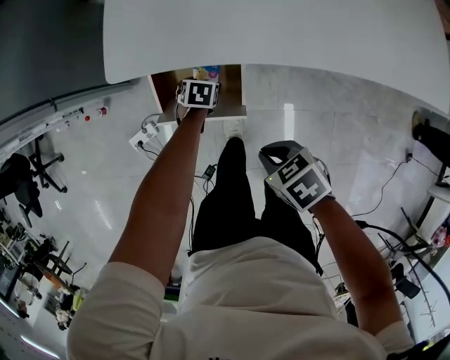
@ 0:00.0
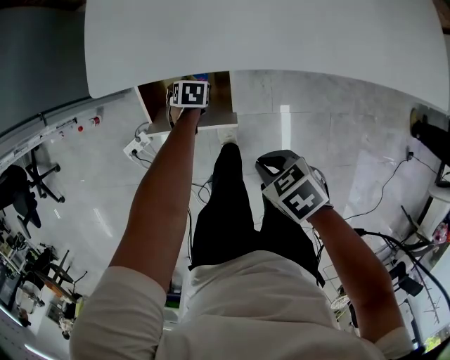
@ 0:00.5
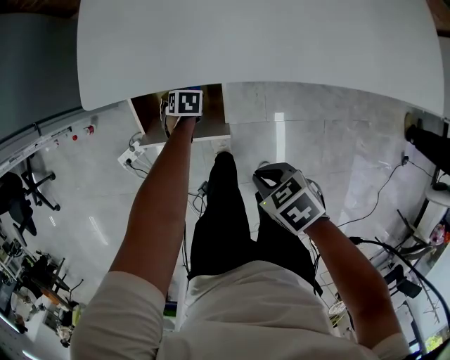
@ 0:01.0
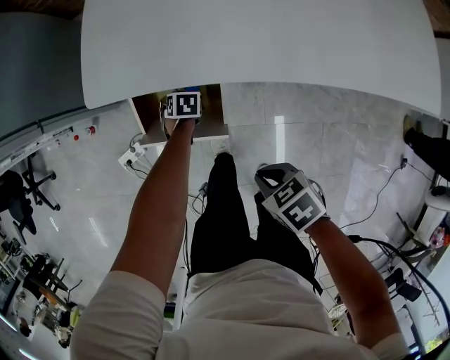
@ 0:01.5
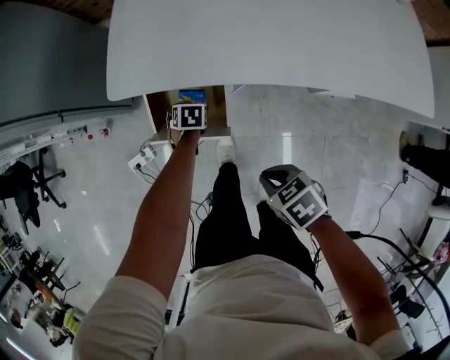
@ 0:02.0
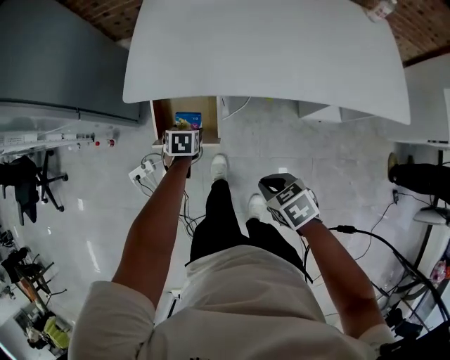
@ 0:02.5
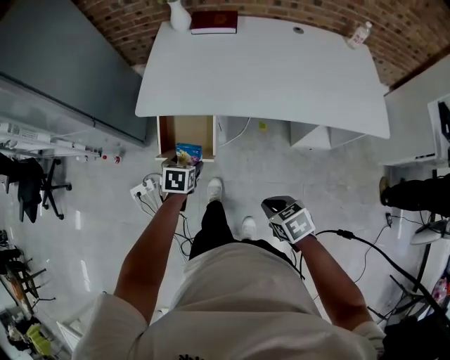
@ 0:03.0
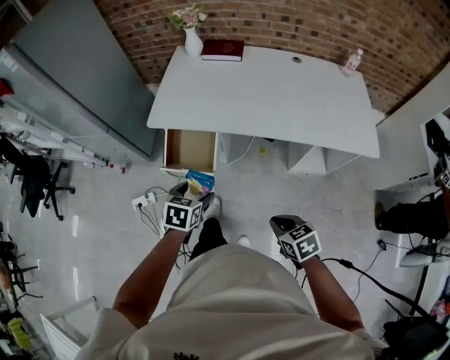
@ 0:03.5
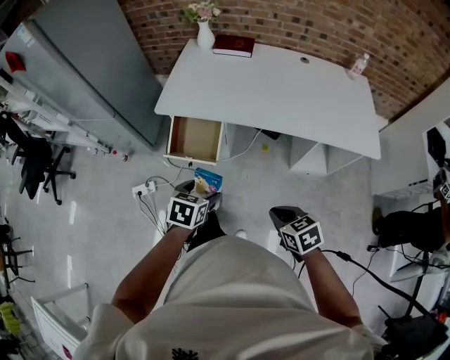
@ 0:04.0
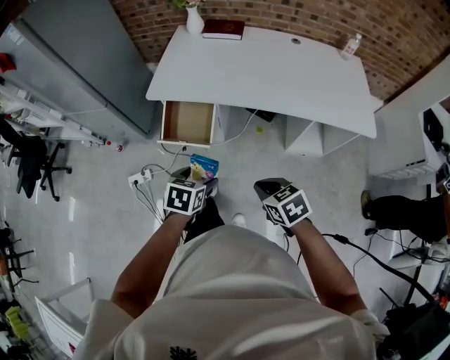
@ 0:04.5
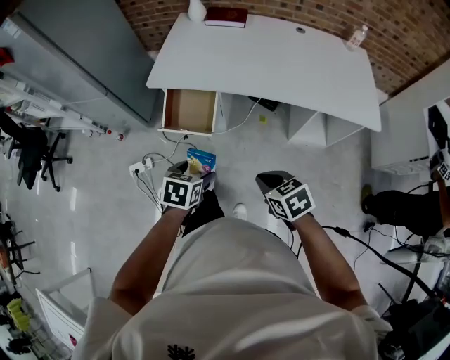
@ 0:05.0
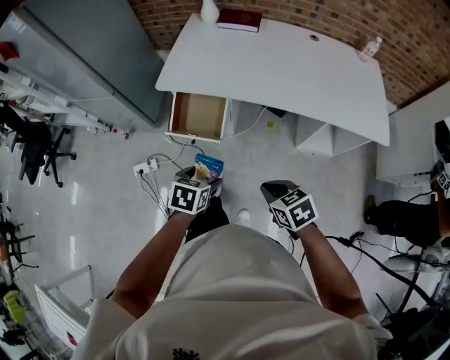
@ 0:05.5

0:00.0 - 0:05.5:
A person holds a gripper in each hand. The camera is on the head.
0:00.0 - 0:02.0: The left gripper goes roughly 5 cm upward, while the right gripper shifts by some 10 cm.
0:02.0 - 0:03.5: The left gripper goes approximately 50 cm upward and backward, and changes its angle by roughly 20 degrees. Meanwhile the right gripper travels backward and upward by about 30 cm, and swivels about 20 degrees.
0:03.5 - 0:05.5: The right gripper travels to the left by about 5 cm. Meanwhile the left gripper shifts about 5 cm backward.

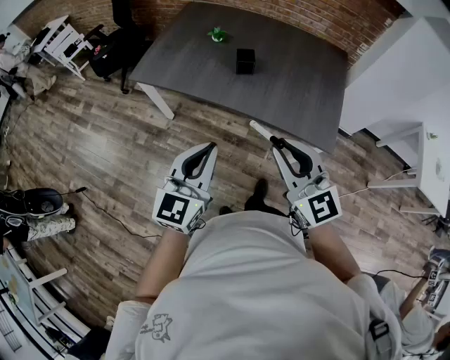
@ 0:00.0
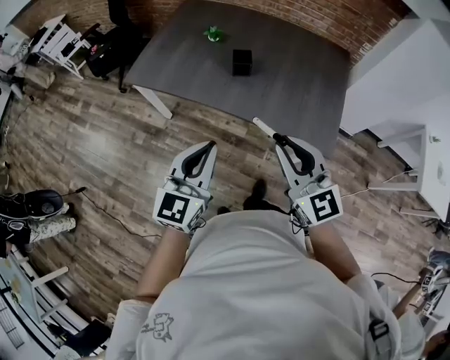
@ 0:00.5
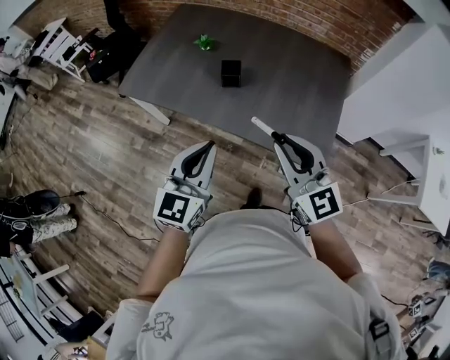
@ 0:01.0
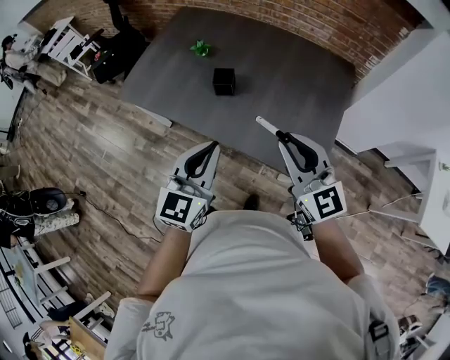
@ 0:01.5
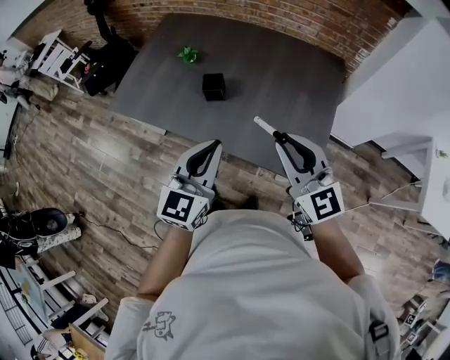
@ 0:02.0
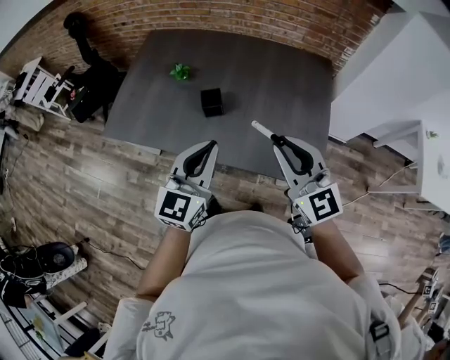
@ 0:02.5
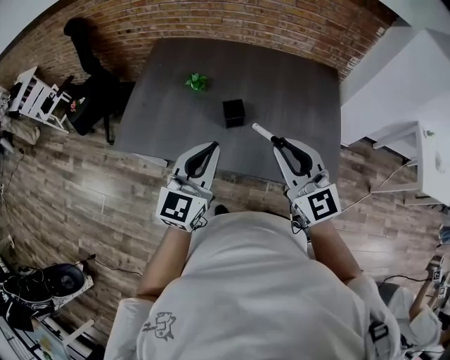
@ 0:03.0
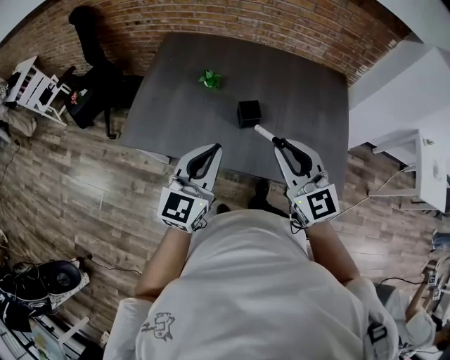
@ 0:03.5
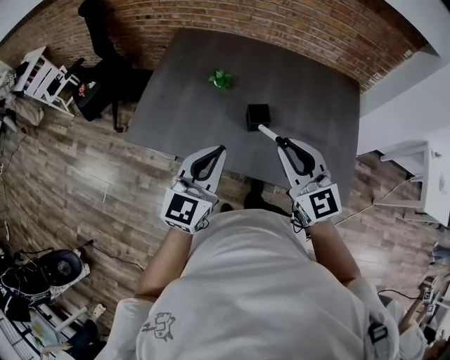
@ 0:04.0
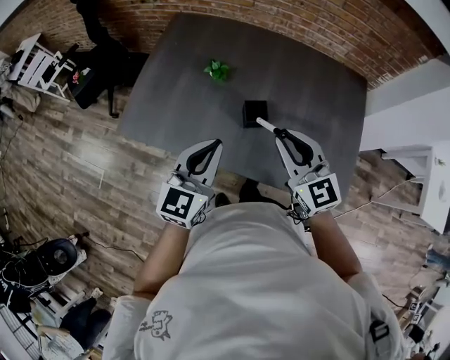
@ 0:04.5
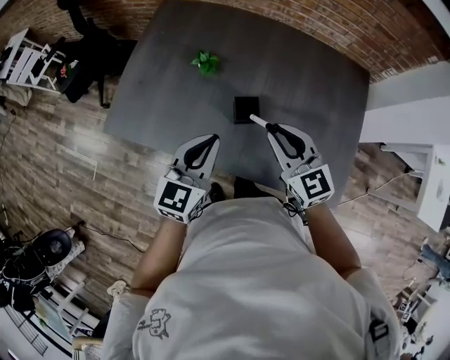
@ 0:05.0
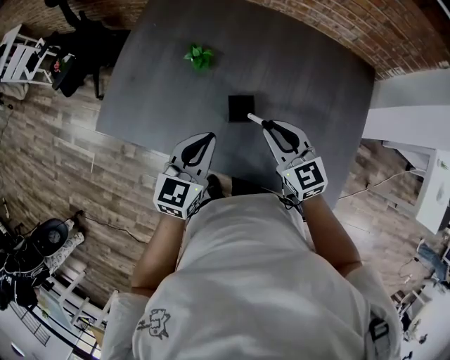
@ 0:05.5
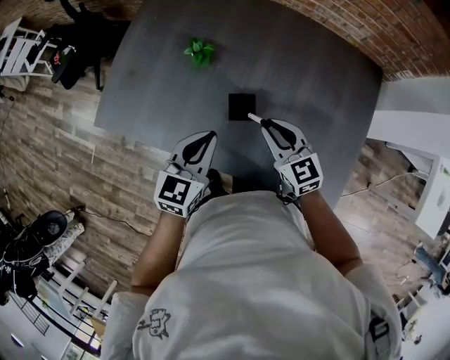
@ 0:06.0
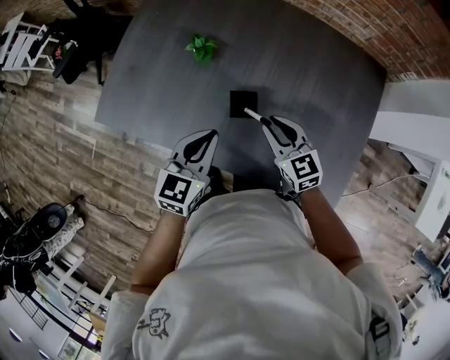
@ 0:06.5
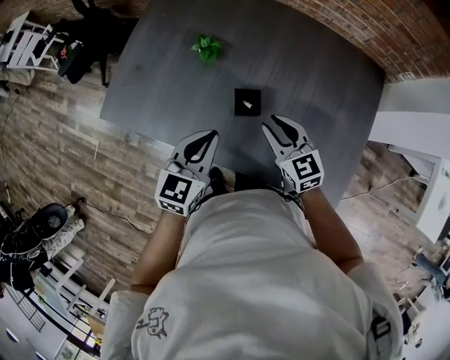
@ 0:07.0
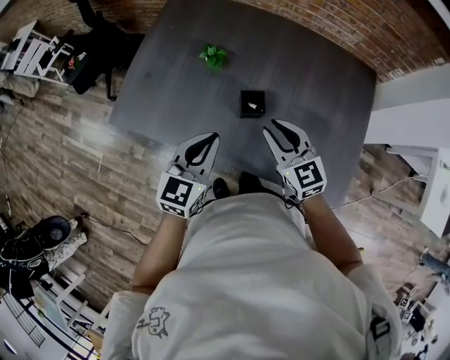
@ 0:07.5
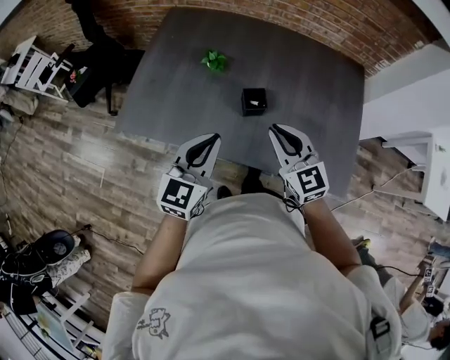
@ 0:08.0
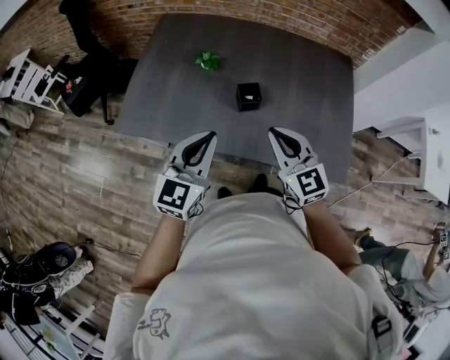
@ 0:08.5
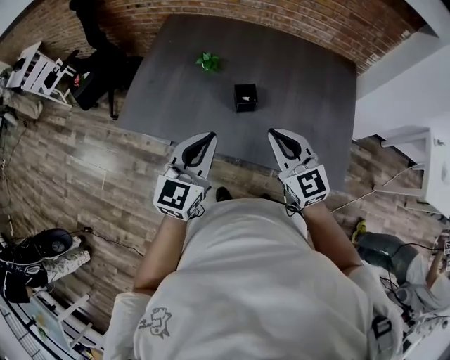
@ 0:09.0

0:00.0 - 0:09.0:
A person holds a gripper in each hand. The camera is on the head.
0:00.0 - 0:02.0: The two grippers go about 25 cm to the right and forward.
0:02.0 - 0:04.5: The grippers both shift to the left and forward by approximately 25 cm.
0:04.5 - 0:07.0: The right gripper moves downward and forward, approximately 20 cm. The left gripper travels downward and forward by roughly 10 cm.
0:07.0 - 0:09.0: Both grippers travel together backward and upward, roughly 20 cm. The right gripper closes its fingers.

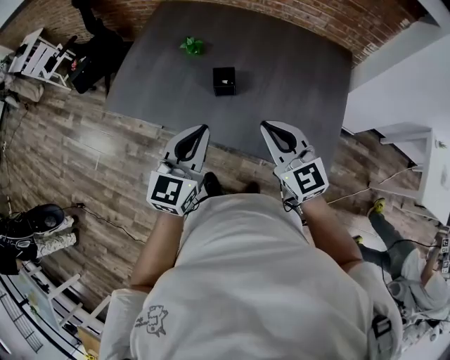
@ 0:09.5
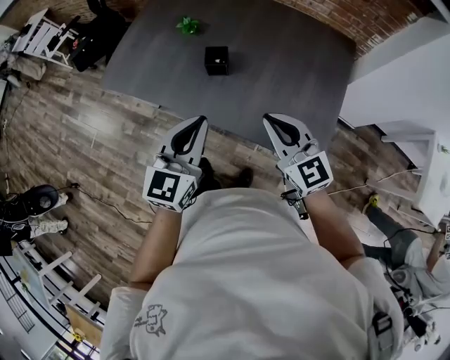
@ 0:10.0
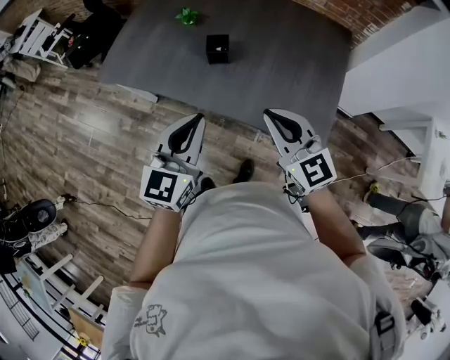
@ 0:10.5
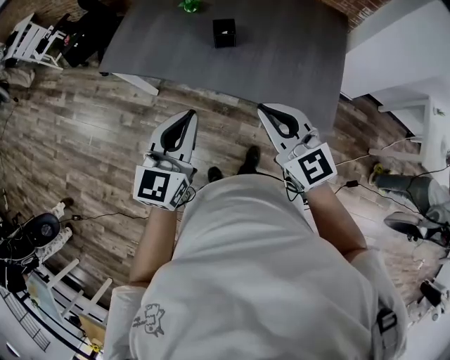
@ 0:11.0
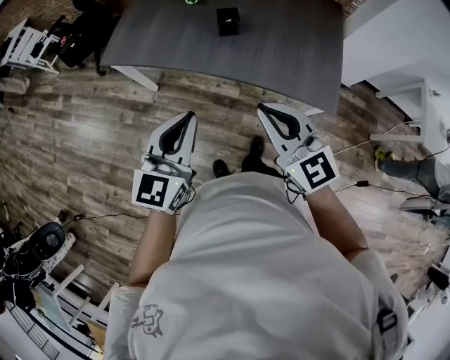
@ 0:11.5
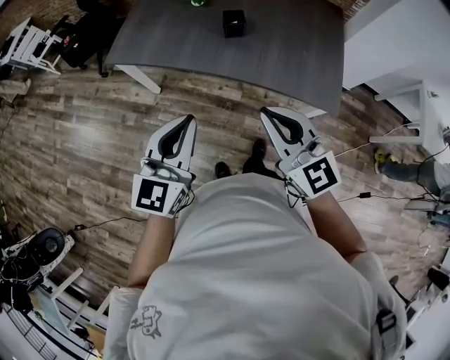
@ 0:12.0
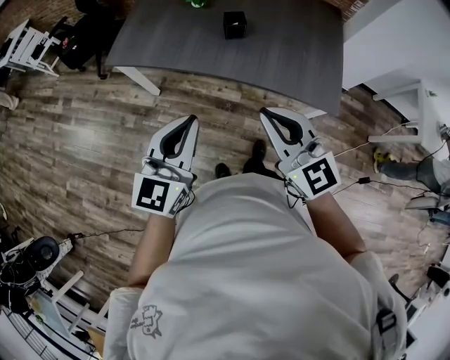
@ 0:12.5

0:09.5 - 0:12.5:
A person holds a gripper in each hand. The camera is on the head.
0:09.5 - 0:11.0: Both grippers move backward and to the left, some 15 cm.
0:11.0 - 0:12.5: The two grippers go about 10 cm to the left and backward.

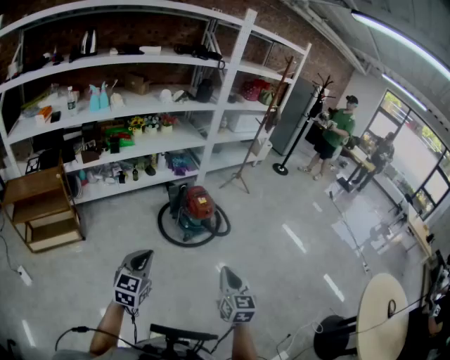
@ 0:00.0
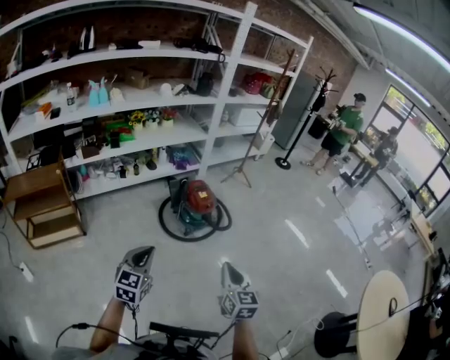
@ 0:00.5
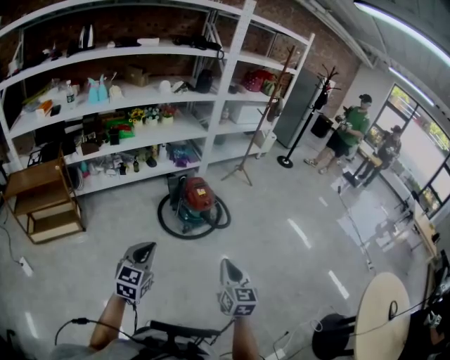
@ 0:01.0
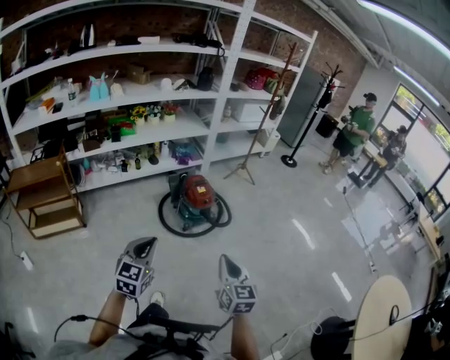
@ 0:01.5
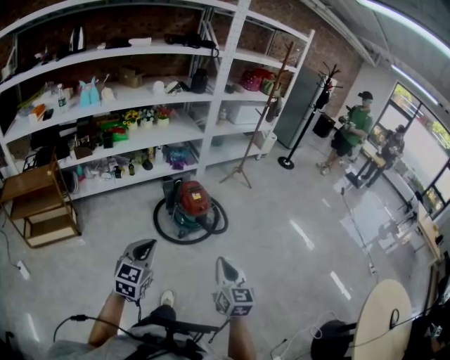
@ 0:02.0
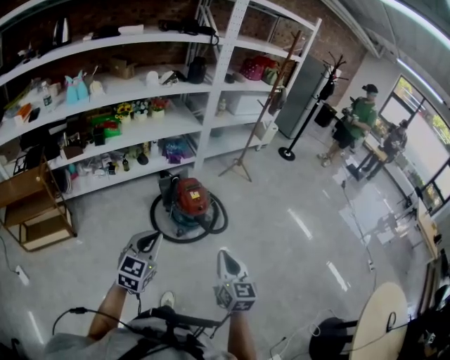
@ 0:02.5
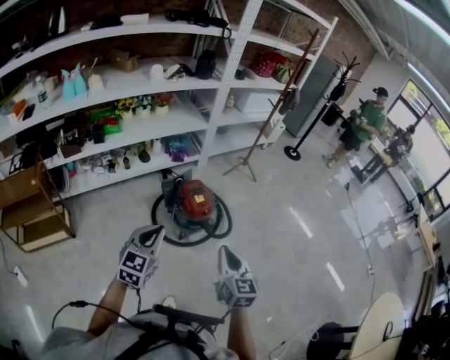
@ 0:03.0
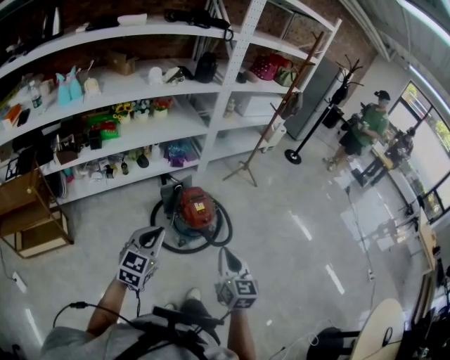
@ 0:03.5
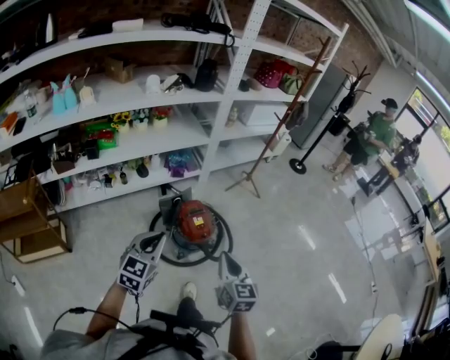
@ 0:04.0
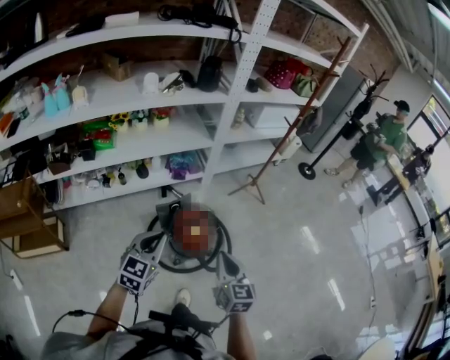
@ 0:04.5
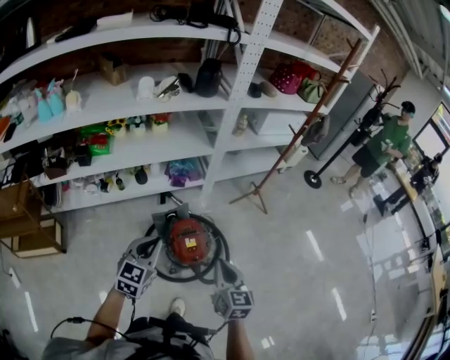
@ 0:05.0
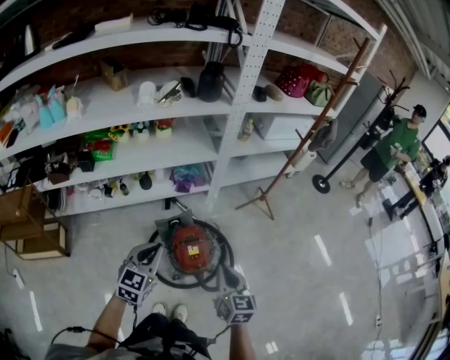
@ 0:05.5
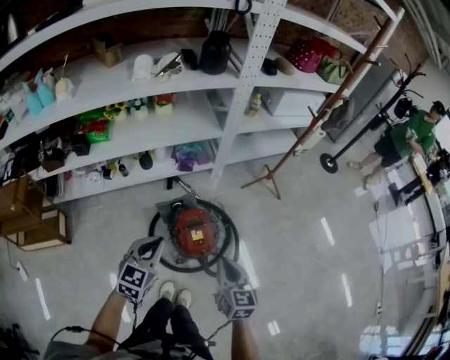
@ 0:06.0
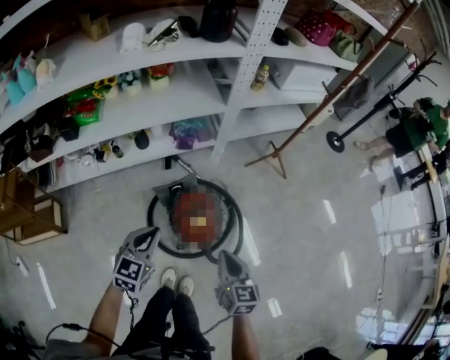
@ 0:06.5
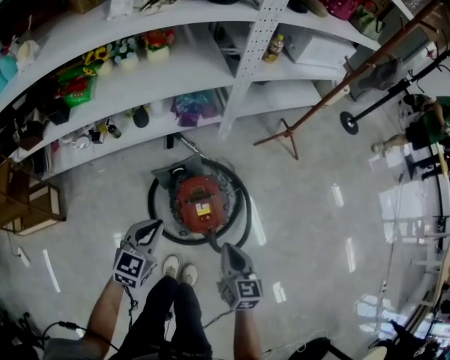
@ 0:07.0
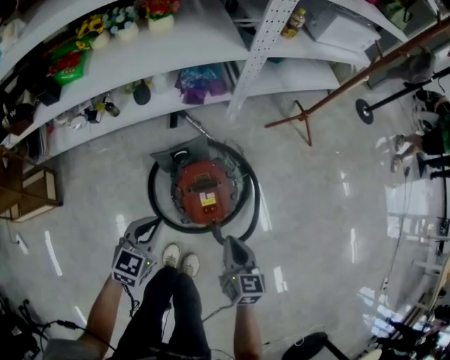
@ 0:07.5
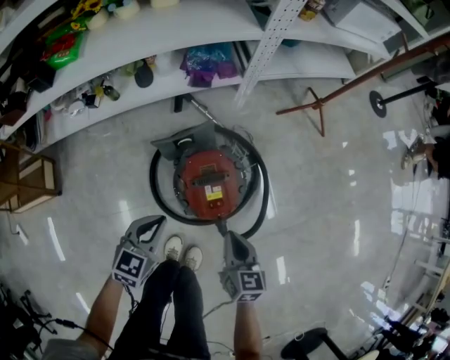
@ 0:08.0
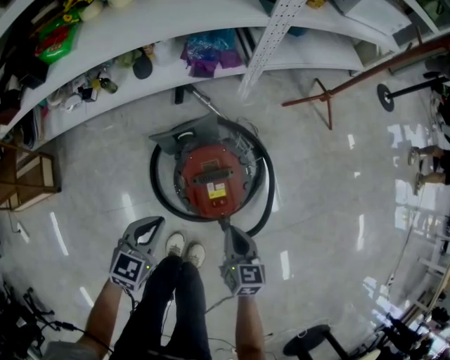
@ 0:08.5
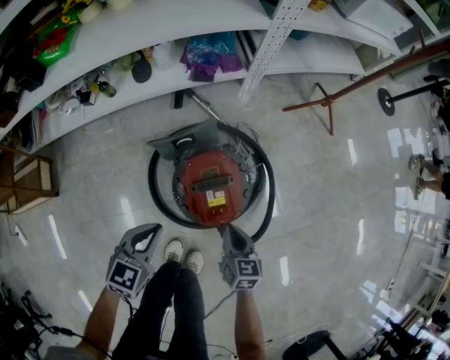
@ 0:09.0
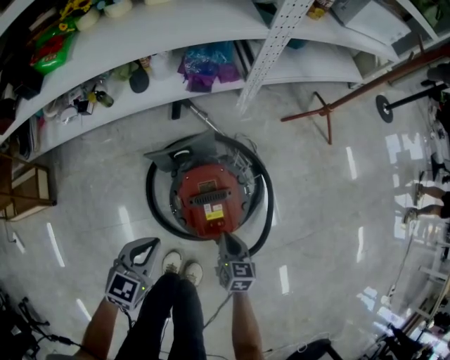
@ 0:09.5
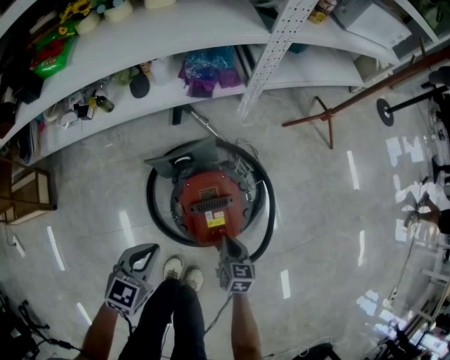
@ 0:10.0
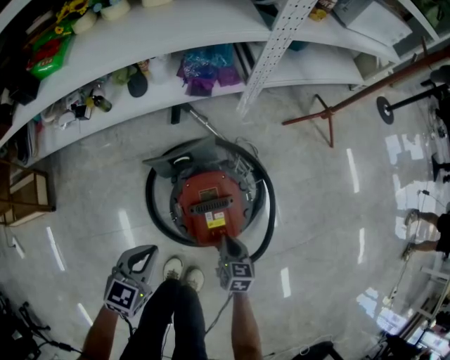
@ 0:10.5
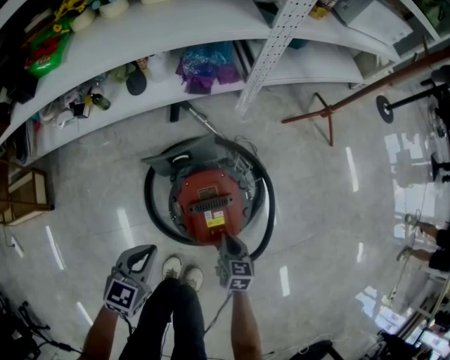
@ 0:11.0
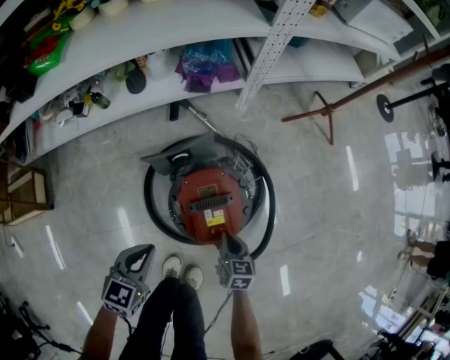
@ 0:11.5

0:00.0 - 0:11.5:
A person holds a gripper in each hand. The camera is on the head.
0:00.0 - 0:02.0: Both grippers move to the right and forward, approximately 15 cm.
0:02.0 - 0:04.0: Both grippers move forward, some 35 cm.
0:04.0 - 0:06.0: The two grippers go roughly 25 cm forward.
0:06.0 - 0:07.5: Both grippers travel together downward, some 25 cm.
0:07.5 - 0:09.5: The right gripper travels downward by approximately 20 cm. The left gripper travels downward by approximately 10 cm.
0:09.5 - 0:11.5: The grippers make only small movements.
